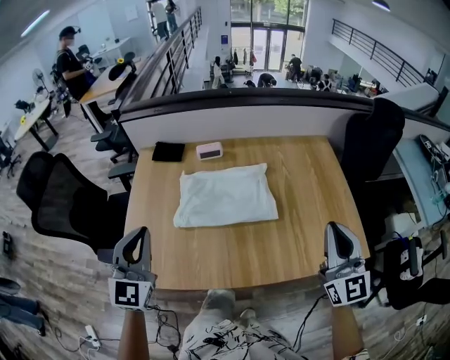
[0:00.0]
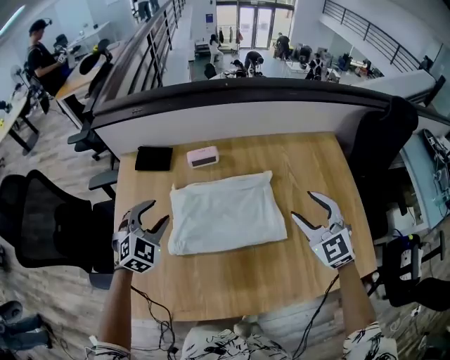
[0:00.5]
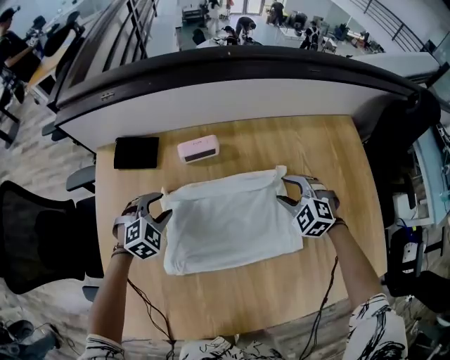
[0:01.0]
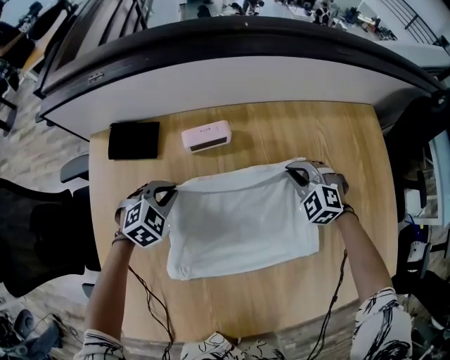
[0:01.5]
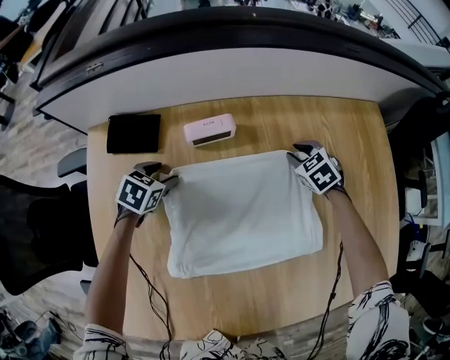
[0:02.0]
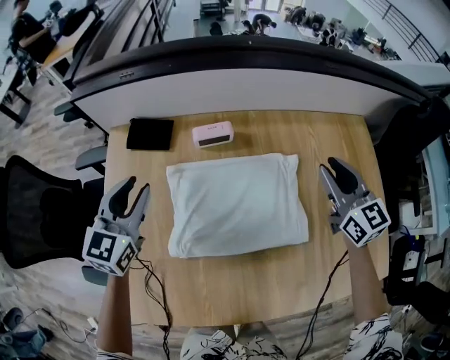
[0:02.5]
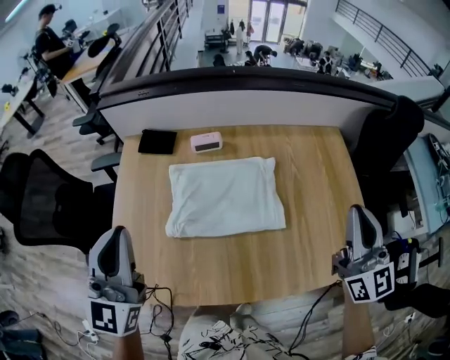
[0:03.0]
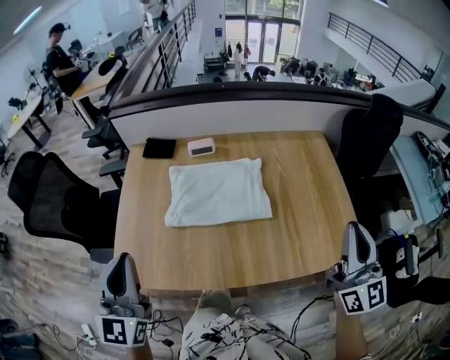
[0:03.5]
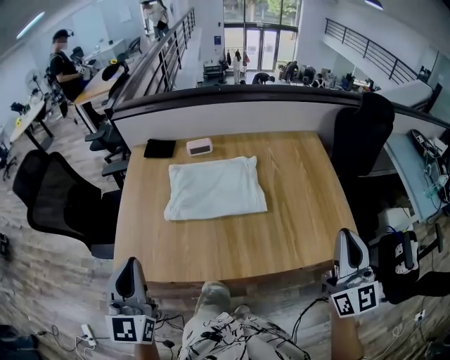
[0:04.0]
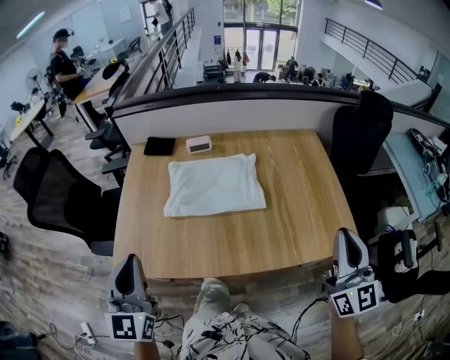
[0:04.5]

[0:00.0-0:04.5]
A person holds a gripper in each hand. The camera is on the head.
0:00.0 to 0:02.0: The pair of grippers is taken forward, about 50 cm. The grippers both shift downward by roughly 40 cm. The left gripper tilts its fingers some 60 degrees downward, and opens up; the right gripper points its fingers about 70 degrees further downward.
0:02.0 to 0:04.5: The two grippers travel together, backward, roughly 60 cm. The grippers both shift upward by some 40 cm. The left gripper points its fingers approximately 60 degrees further upward, and closes; the right gripper points its fingers approximately 70 degrees further upward.

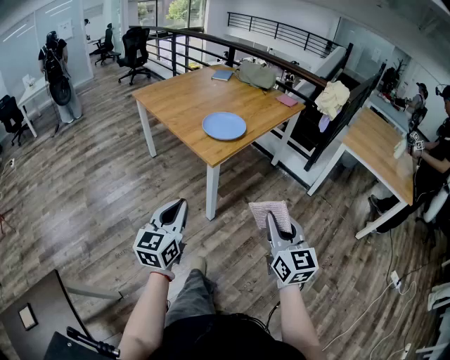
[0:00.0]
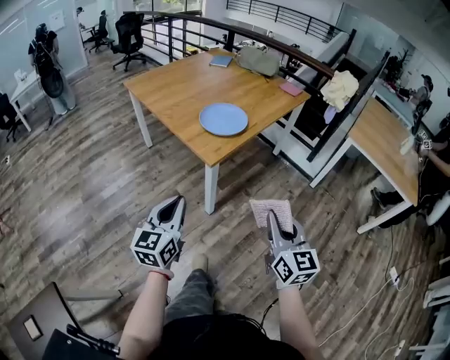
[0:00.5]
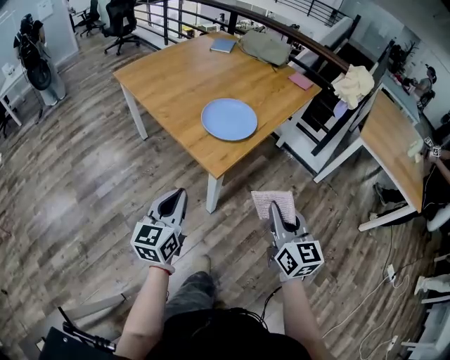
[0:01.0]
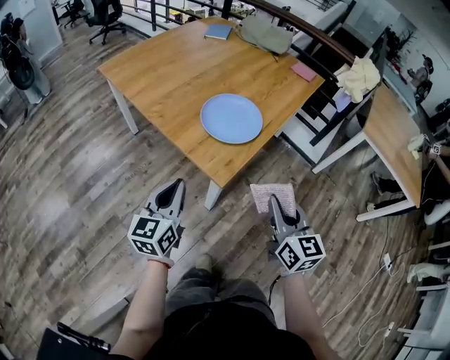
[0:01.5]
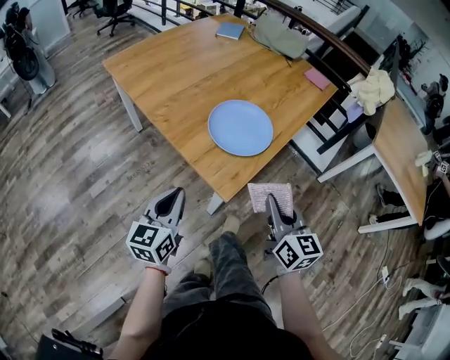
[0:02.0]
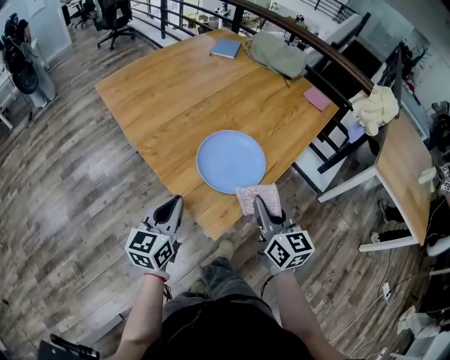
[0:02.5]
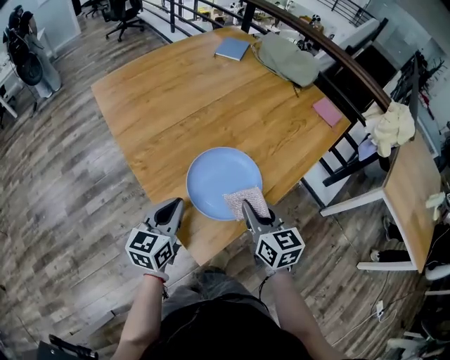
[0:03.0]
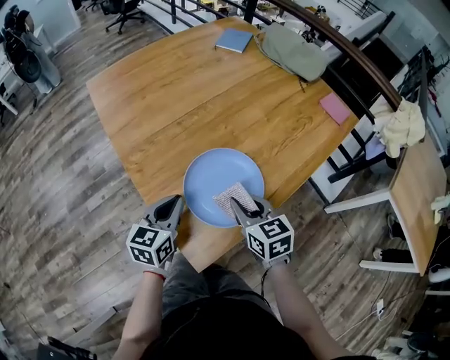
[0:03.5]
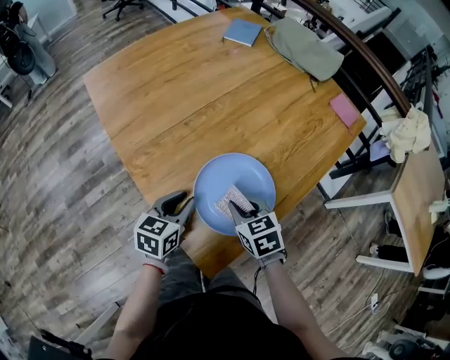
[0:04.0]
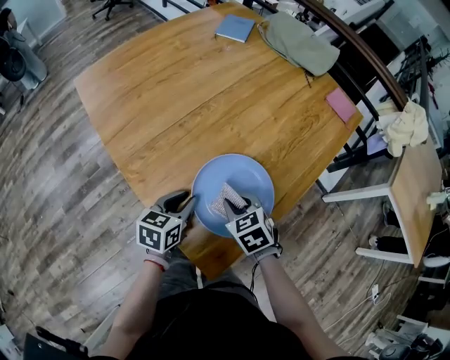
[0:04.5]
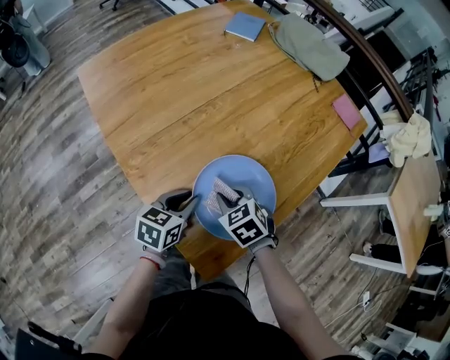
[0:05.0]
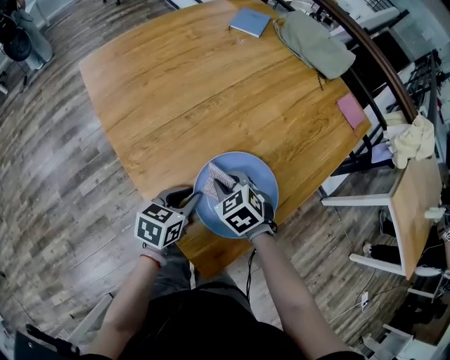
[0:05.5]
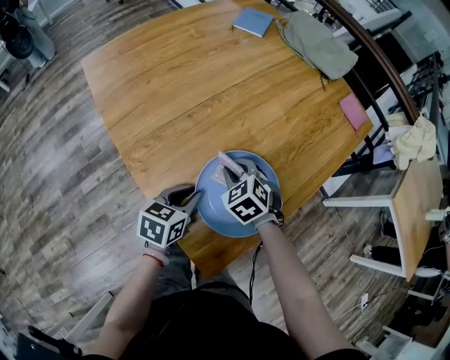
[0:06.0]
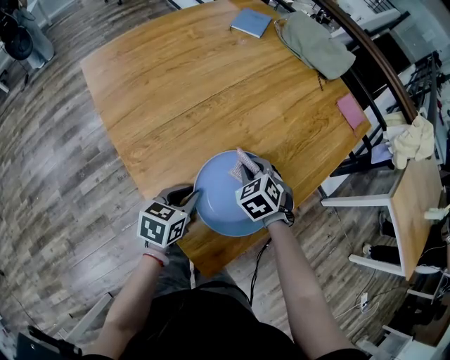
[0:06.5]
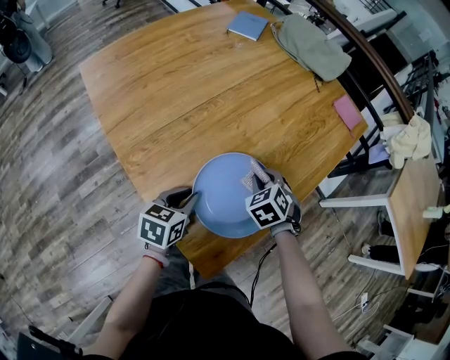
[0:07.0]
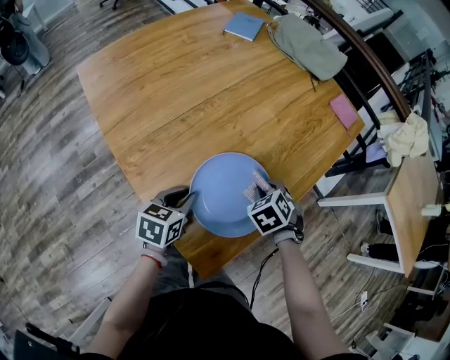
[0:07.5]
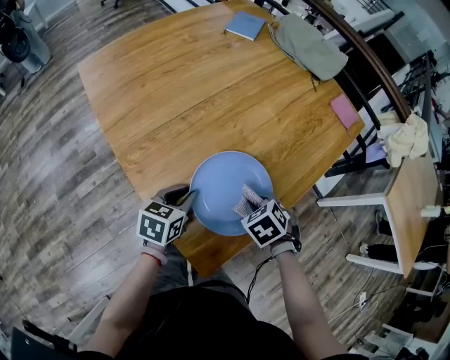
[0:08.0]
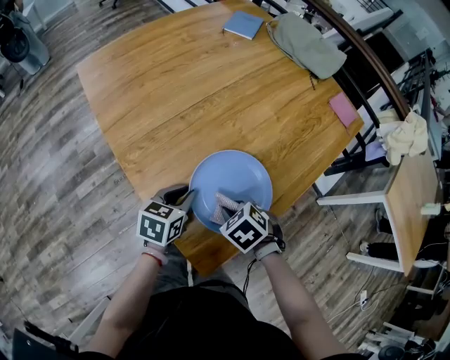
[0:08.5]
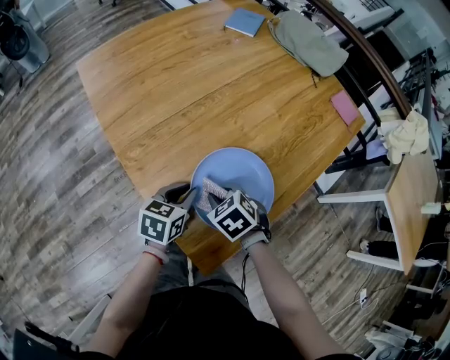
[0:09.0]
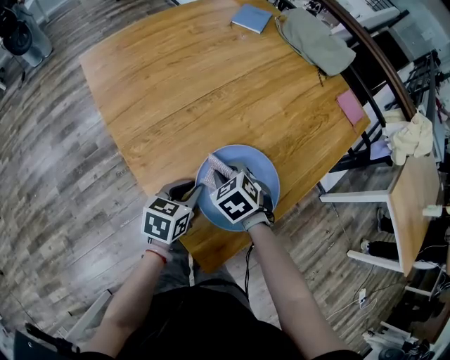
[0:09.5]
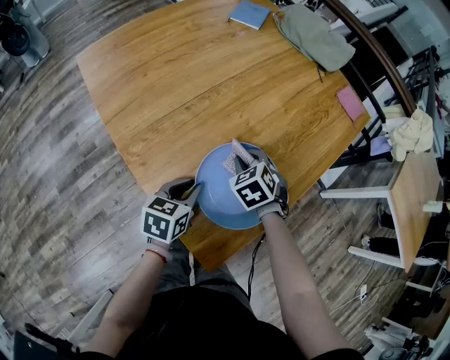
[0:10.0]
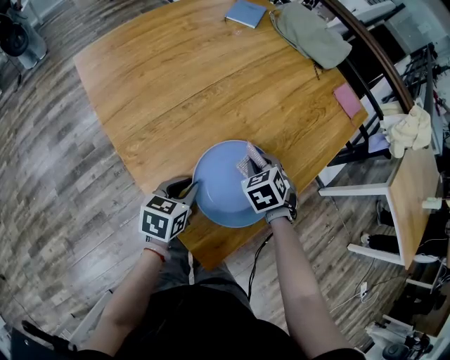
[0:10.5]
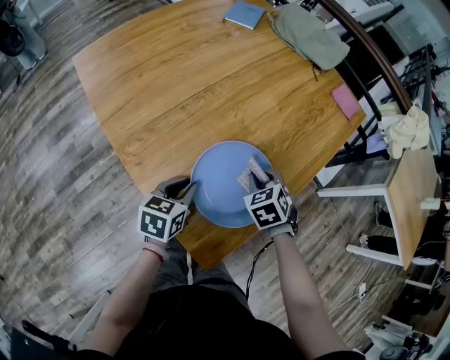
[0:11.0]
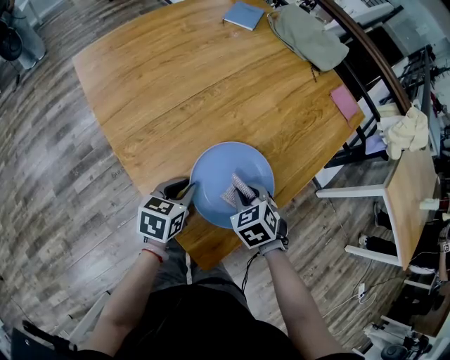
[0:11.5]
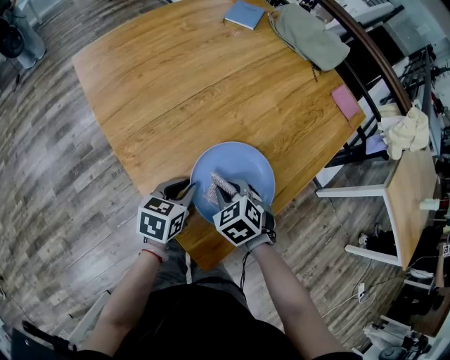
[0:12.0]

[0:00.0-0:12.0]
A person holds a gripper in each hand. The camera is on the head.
0:00.0 to 0:02.0: Both grippers travel together forward, roughly 30 cm.
0:02.0 to 0:04.0: The left gripper is displaced forward by some 25 cm, and swivels about 20 degrees. Meanwhile the right gripper travels forward and downward by approximately 30 cm, and tips its fingers downward by about 40 degrees.
0:04.0 to 0:06.0: The right gripper moves forward, some 10 cm, and rotates about 30 degrees.
0:06.0 to 0:08.0: The right gripper goes approximately 15 cm to the right and backward, and rotates roughly 20 degrees.
0:08.0 to 0:10.0: The right gripper goes some 10 cm forward and to the left.
0:10.0 to 0:12.0: The right gripper goes approximately 10 cm backward.

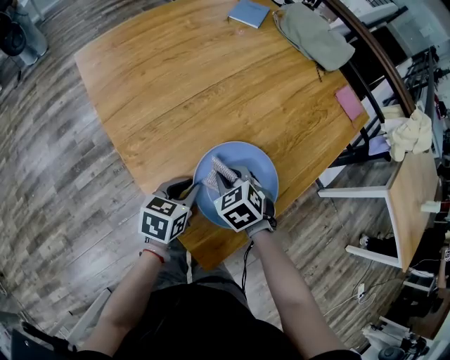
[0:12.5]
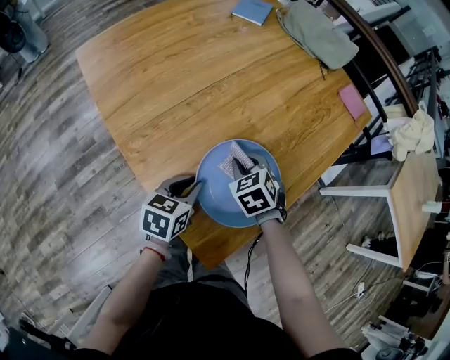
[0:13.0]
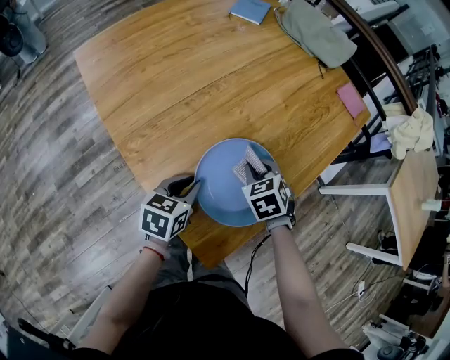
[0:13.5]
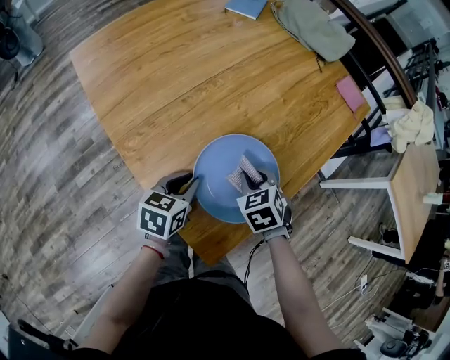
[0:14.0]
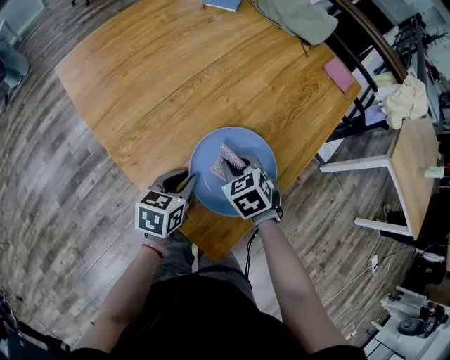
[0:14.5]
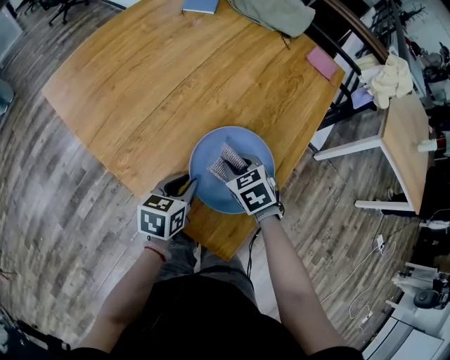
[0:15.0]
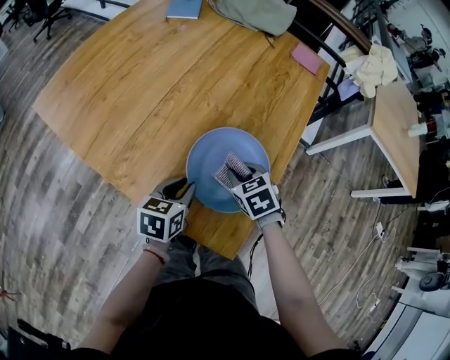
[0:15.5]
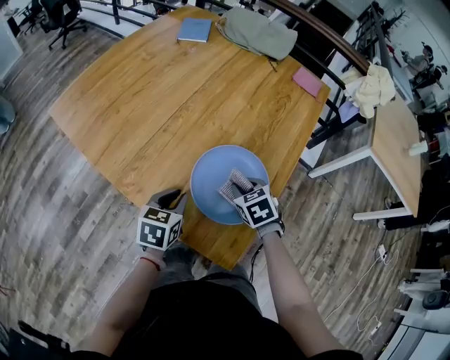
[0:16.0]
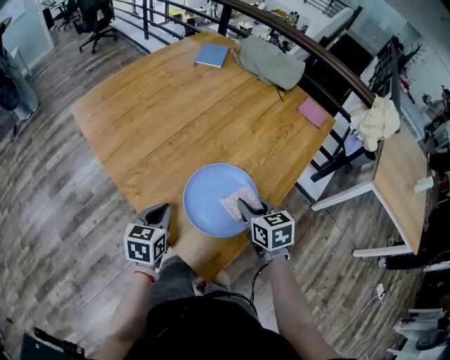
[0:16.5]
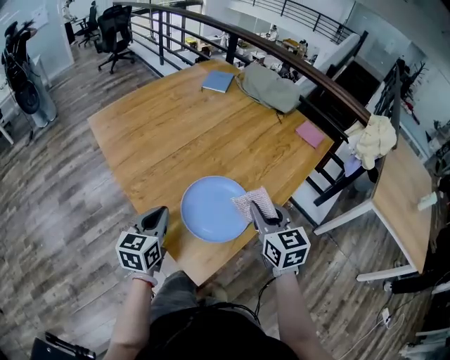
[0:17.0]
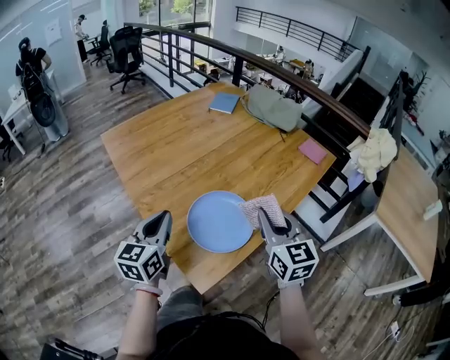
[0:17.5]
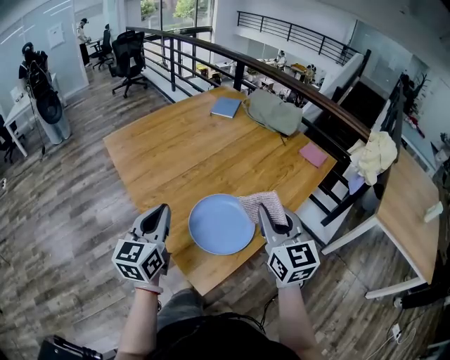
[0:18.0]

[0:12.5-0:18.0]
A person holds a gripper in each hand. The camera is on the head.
0:14.5 to 0:16.0: The right gripper heads to the right, covering about 5 cm.
0:16.0 to 0:18.0: Both grippers travel together upward, roughly 25 cm. The left gripper points its fingers about 40 degrees further upward. Meanwhile the right gripper tips its fingers upward by about 50 degrees.

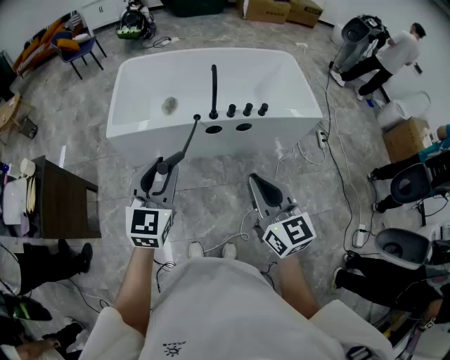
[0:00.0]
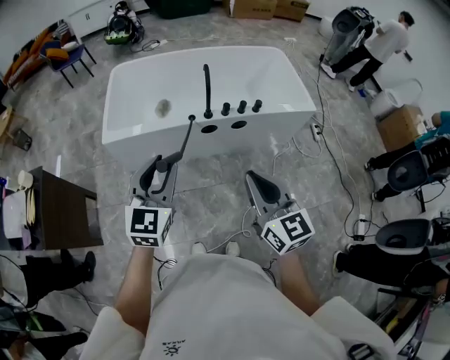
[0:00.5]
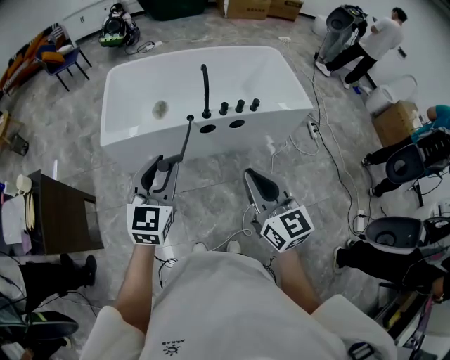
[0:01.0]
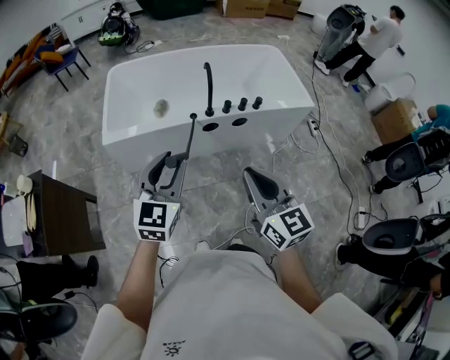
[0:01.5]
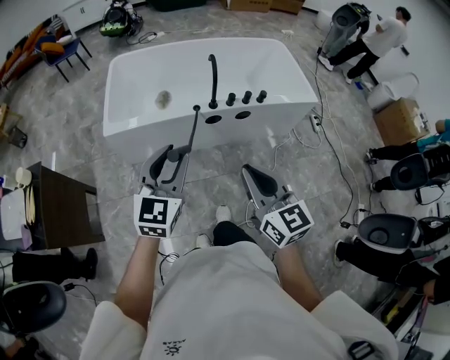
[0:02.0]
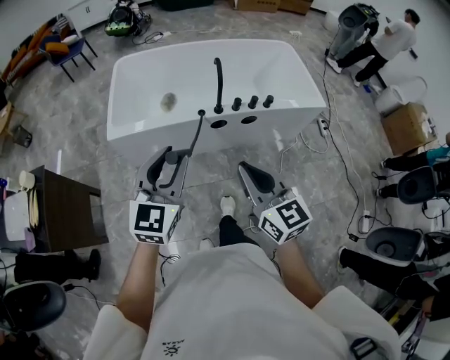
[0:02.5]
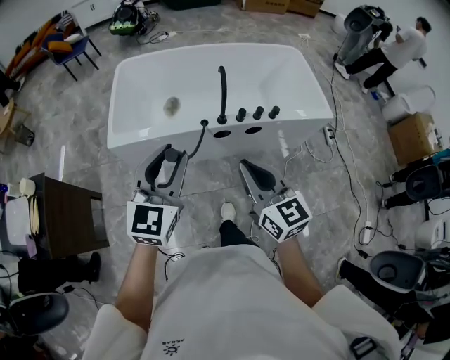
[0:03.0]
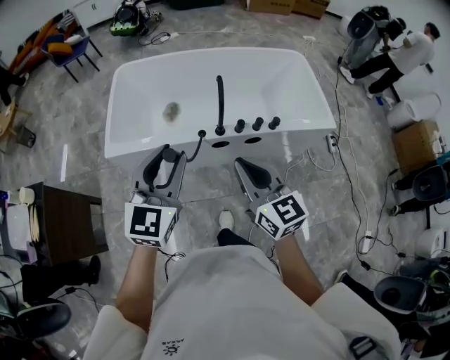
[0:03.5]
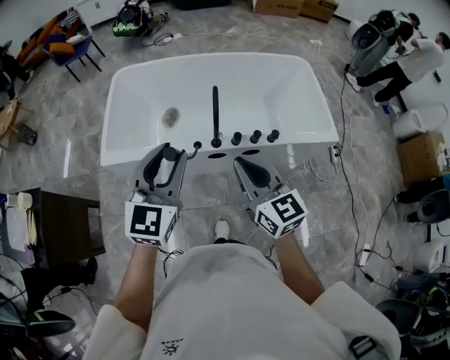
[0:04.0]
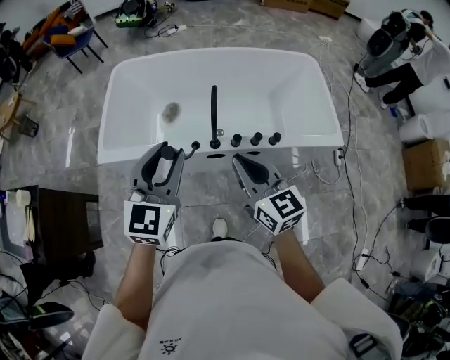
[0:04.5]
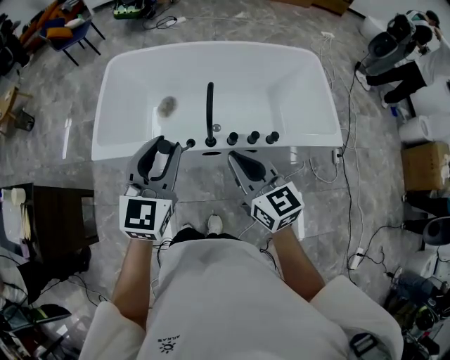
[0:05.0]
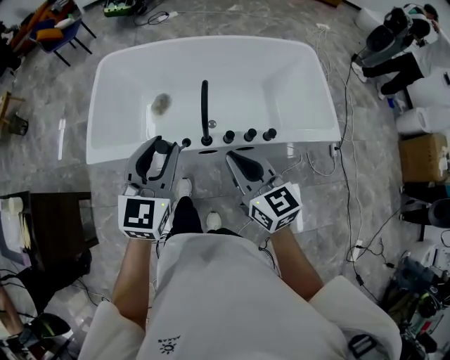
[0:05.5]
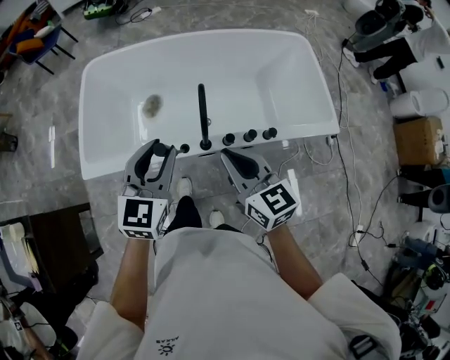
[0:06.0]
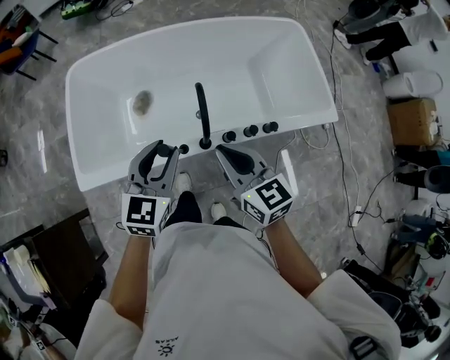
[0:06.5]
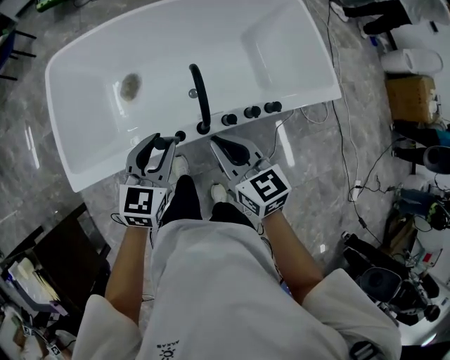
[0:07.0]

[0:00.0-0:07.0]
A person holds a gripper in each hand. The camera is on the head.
0:00.0 to 0:02.0: The right gripper heads to the left, covering approximately 5 cm.
0:02.0 to 0:03.5: The two grippers go some 20 cm forward.
0:03.5 to 0:05.0: The two grippers go roughly 15 cm forward and to the right.
0:05.0 to 0:07.0: The left gripper travels downward and forward by roughly 25 cm, and swivels some 30 degrees. The right gripper travels forward, downward and to the left by roughly 20 cm.
